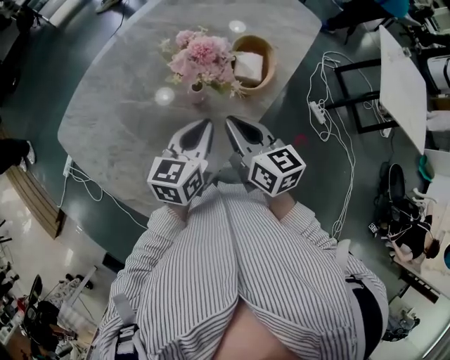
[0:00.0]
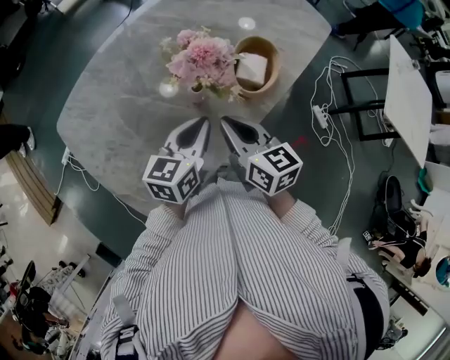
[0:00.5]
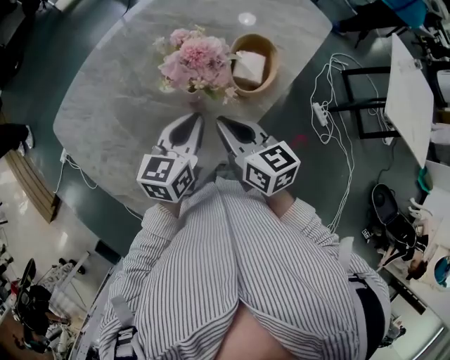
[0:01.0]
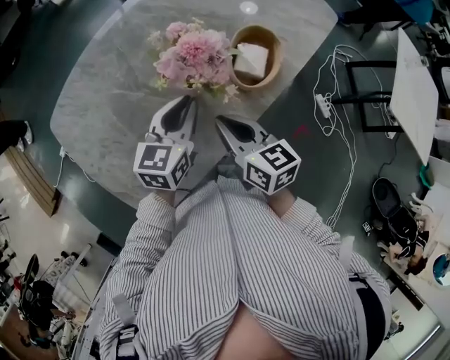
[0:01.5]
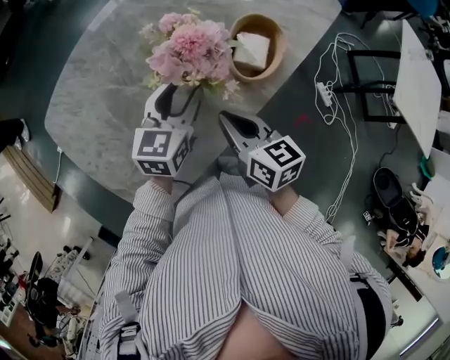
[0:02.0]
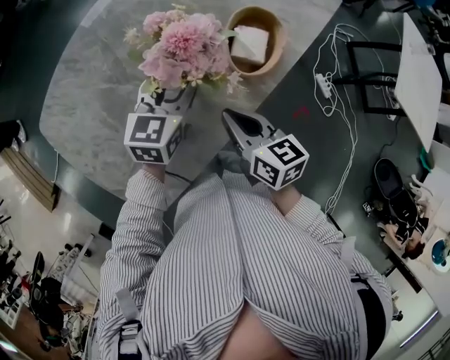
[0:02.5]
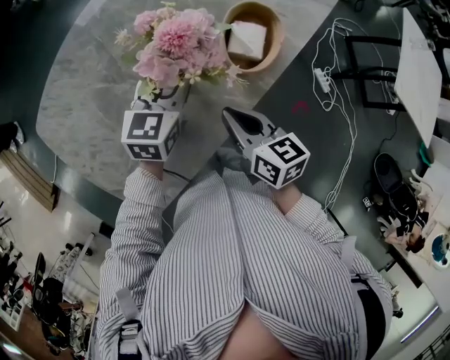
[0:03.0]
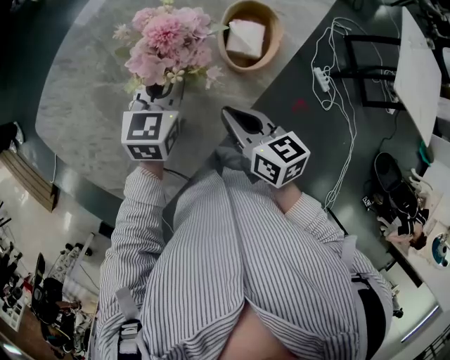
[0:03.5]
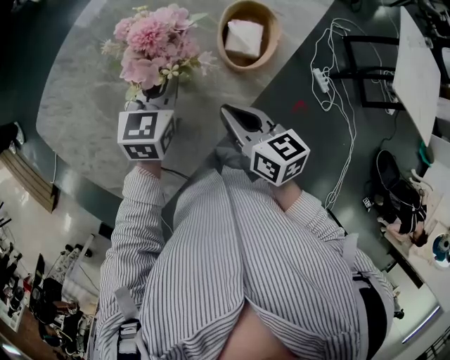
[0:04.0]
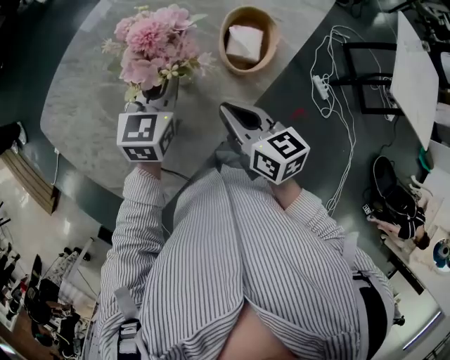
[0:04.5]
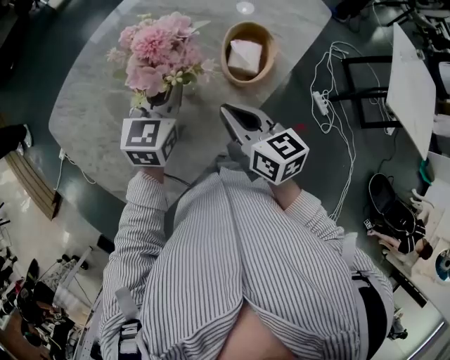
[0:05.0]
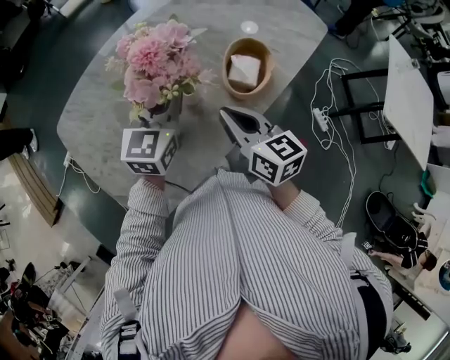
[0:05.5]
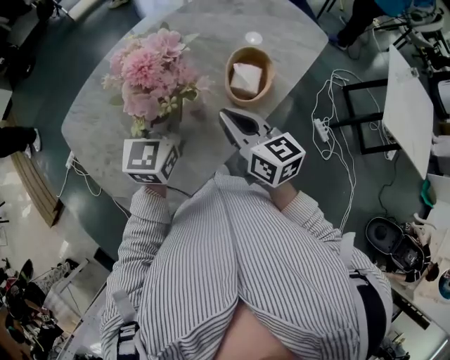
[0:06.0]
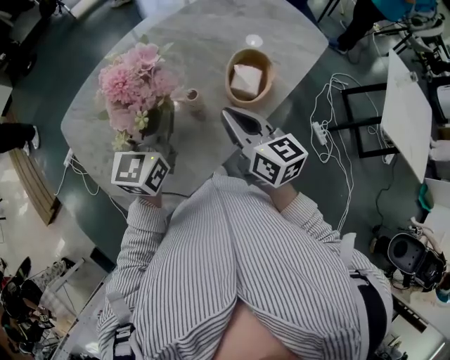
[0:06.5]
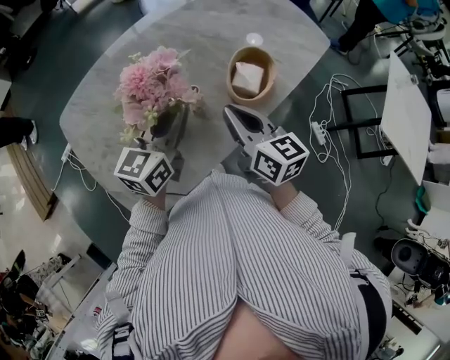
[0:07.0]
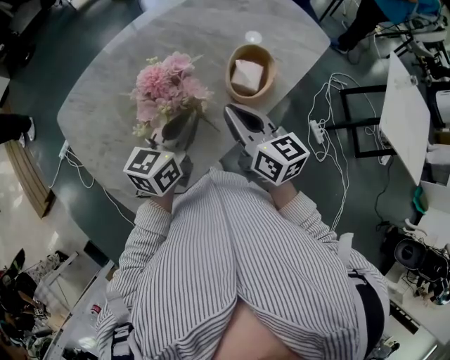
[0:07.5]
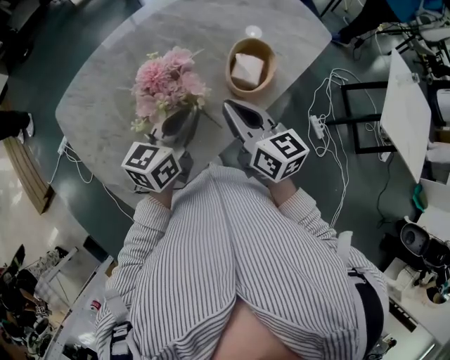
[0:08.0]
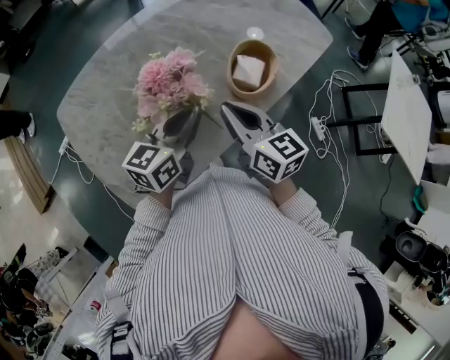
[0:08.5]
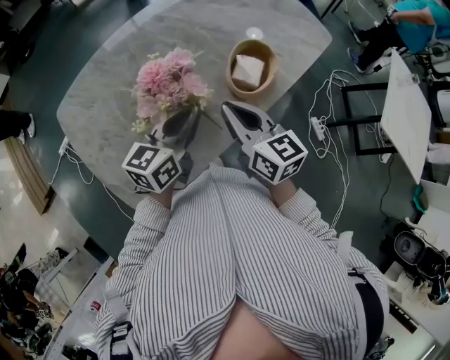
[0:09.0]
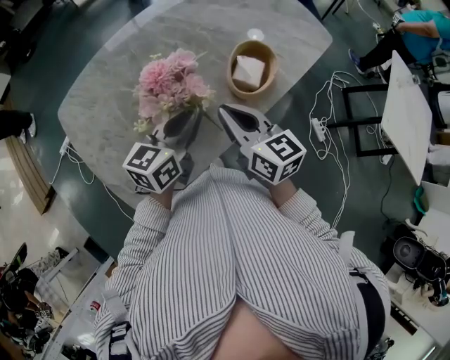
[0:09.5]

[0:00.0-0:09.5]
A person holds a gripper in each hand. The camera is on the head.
0:00.0 to 0:02.0: The left gripper travels forward by approximately 10 cm, and opens its fingers, while the right gripper travels downward by about 5 cm.
0:02.0 to 0:04.0: The left gripper closes up.
0:04.0 to 0:05.5: Both grippers travel together upward, approximately 5 cm.
0:05.5 to 0:07.5: The left gripper travels backward by roughly 10 cm, and rotates roughly 20 degrees.
0:07.5 to 0:09.5: The grippers stay close to where they were, moving slightly.

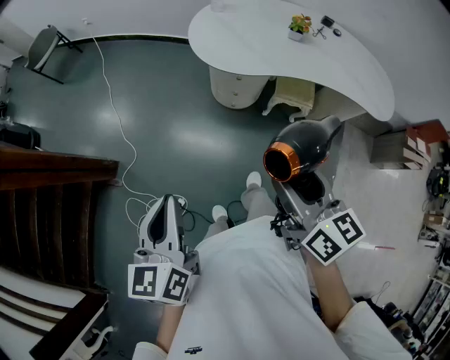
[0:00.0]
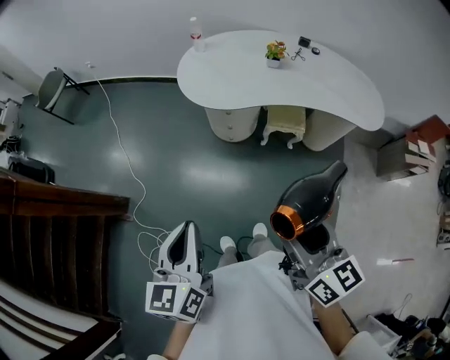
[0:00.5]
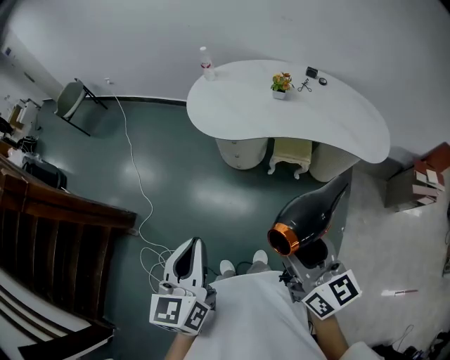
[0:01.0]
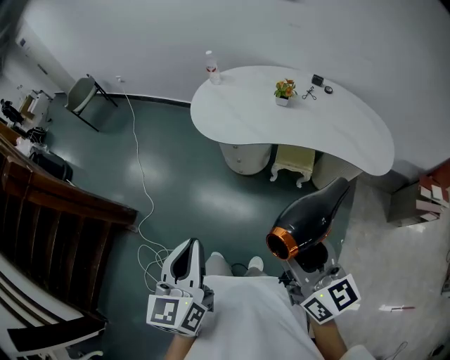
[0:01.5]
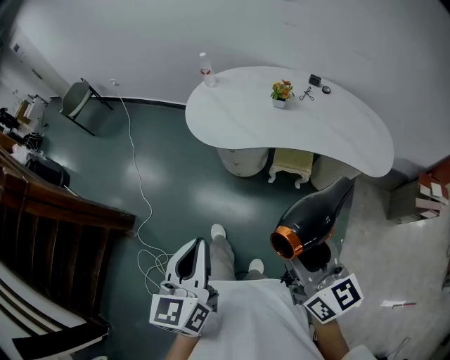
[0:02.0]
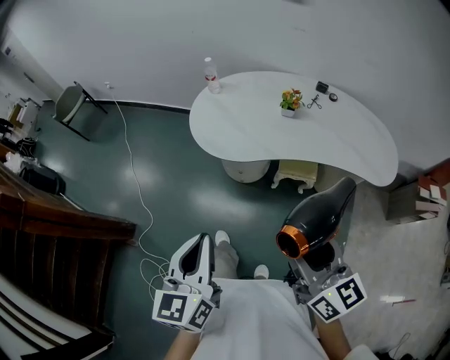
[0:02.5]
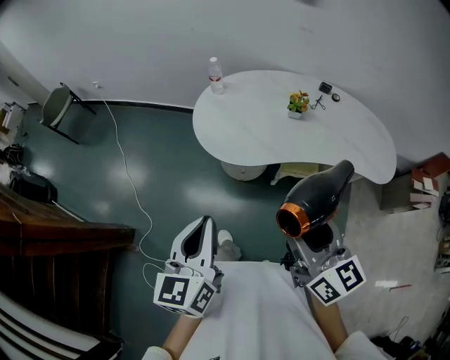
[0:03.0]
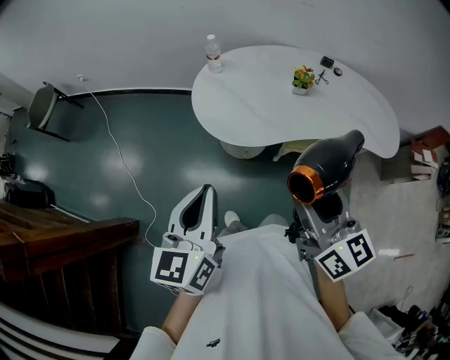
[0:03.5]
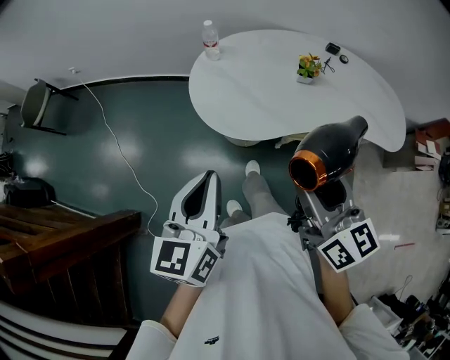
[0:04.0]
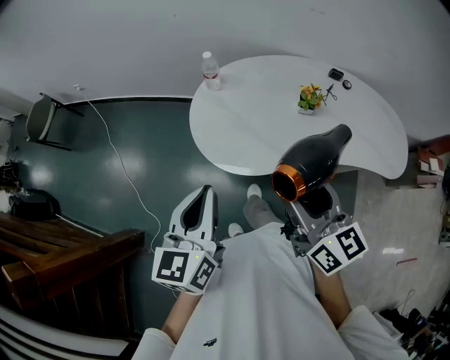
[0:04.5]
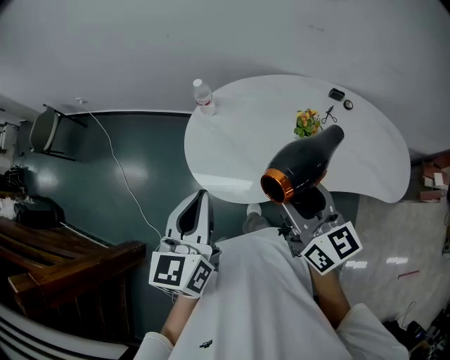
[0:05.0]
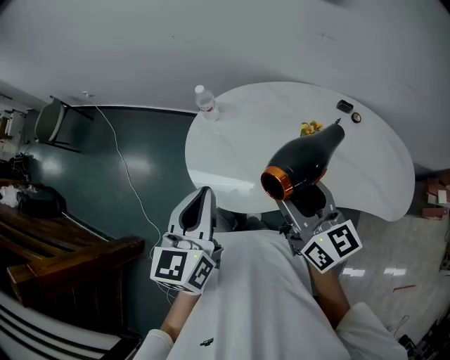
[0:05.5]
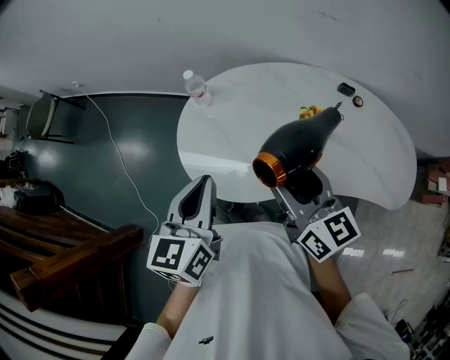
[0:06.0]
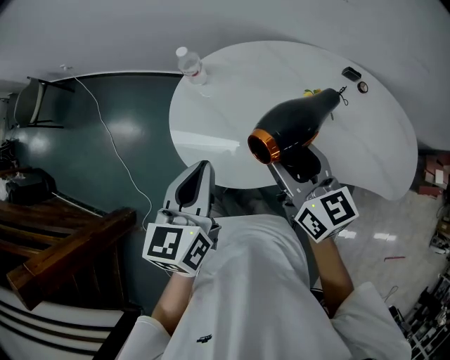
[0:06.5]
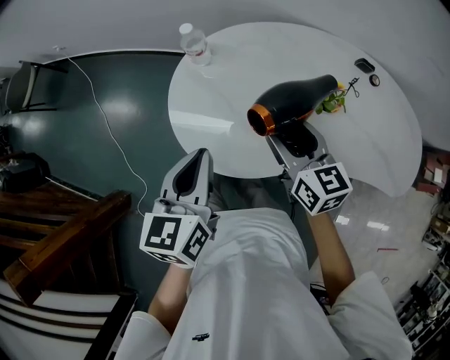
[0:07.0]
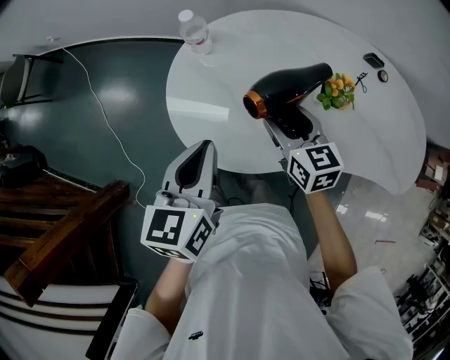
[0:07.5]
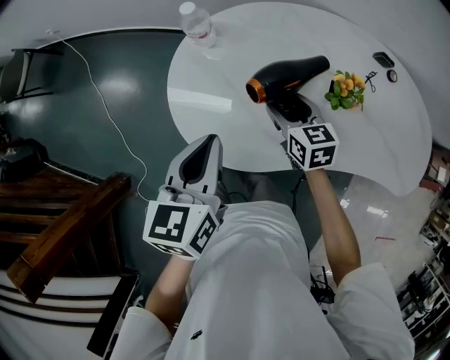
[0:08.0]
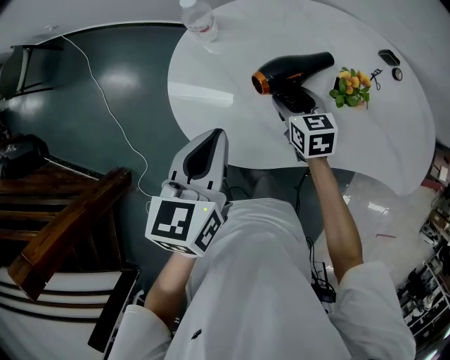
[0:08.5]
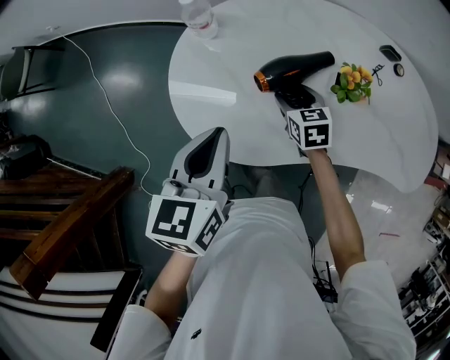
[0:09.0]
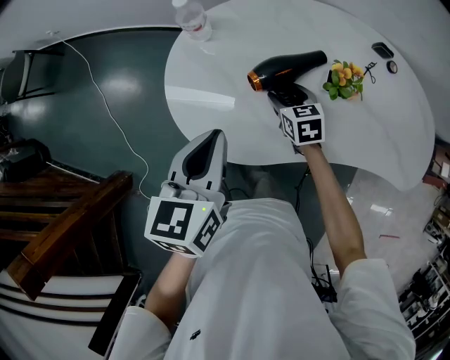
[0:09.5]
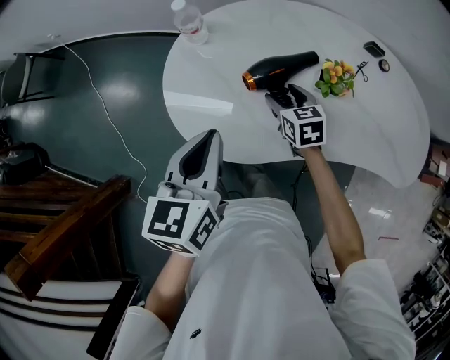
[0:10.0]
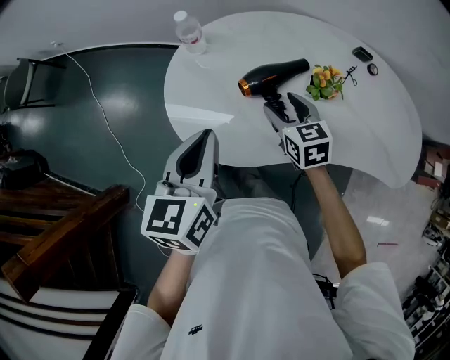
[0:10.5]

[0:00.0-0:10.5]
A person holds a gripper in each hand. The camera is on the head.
0:00.0 to 0:02.0: Both grippers travel together to the right, approximately 20 cm.
0:02.0 to 0:04.0: The two grippers go about 30 cm forward and to the left.
0:04.0 to 0:06.5: The left gripper shifts approximately 25 cm forward and to the right, while the right gripper heads forward, covering roughly 25 cm.
0:06.5 to 0:08.5: The left gripper heads downward, covering some 10 cm, while the right gripper moves downward, approximately 25 cm, and turns by about 30 degrees.
0:08.5 to 0:10.5: The right gripper travels upward by approximately 5 cm, while the left gripper changes place by roughly 5 cm.

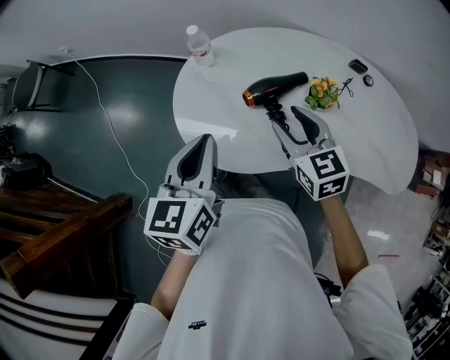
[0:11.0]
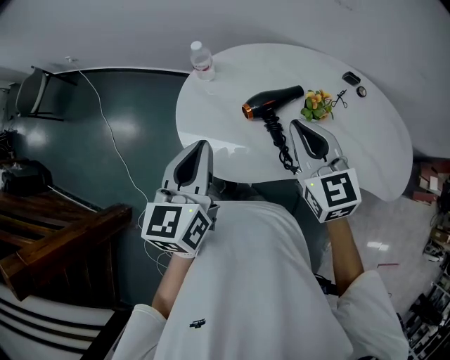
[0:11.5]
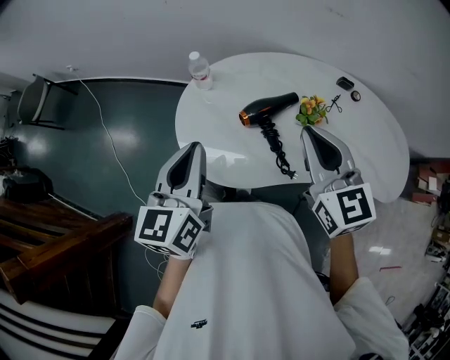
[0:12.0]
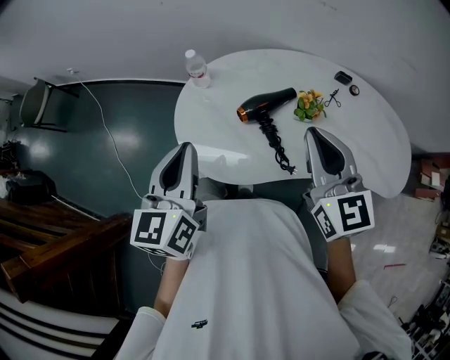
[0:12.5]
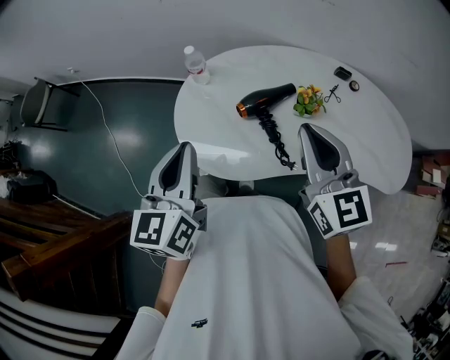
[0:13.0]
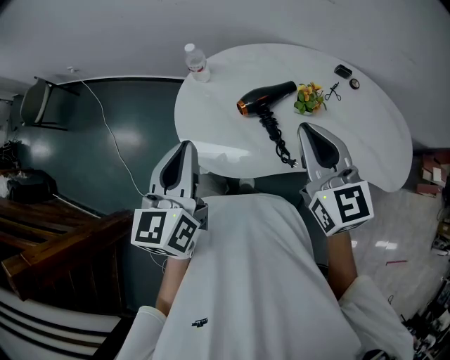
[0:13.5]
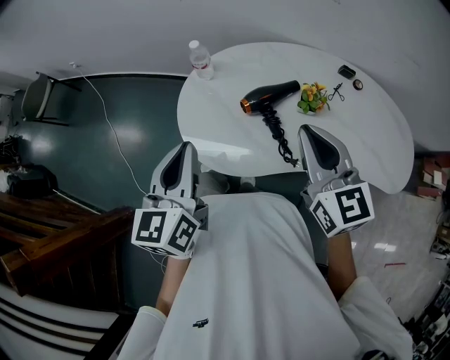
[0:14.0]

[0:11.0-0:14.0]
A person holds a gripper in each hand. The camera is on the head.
0:11.0 to 0:12.5: The right gripper travels upward by roughly 15 cm, turns by about 20 degrees, and closes. The left gripper moves upward, some 5 cm.
0:12.5 to 0:14.0: The grippers stay close to where they were, moving slightly.

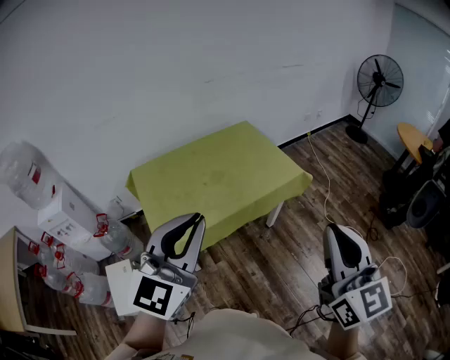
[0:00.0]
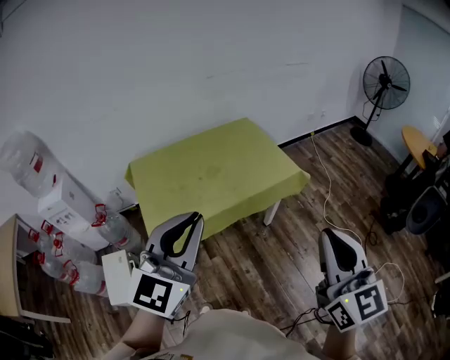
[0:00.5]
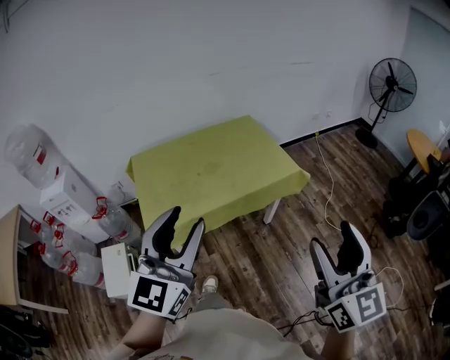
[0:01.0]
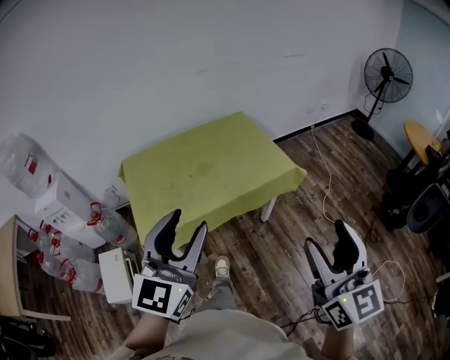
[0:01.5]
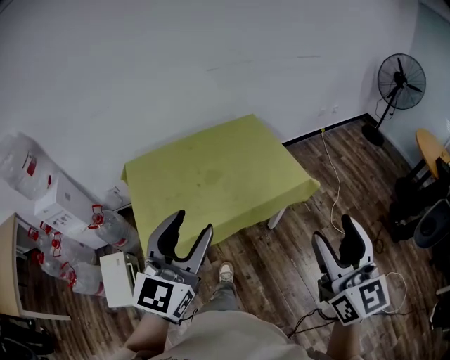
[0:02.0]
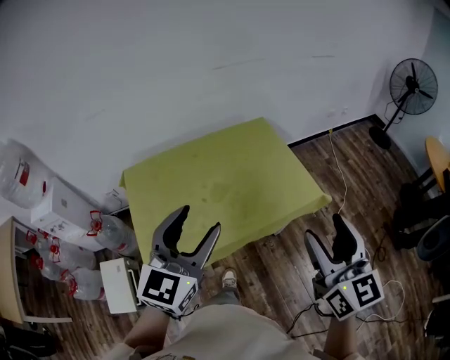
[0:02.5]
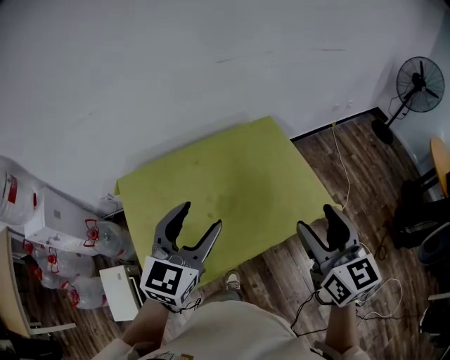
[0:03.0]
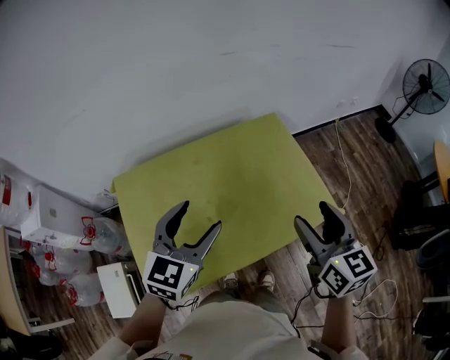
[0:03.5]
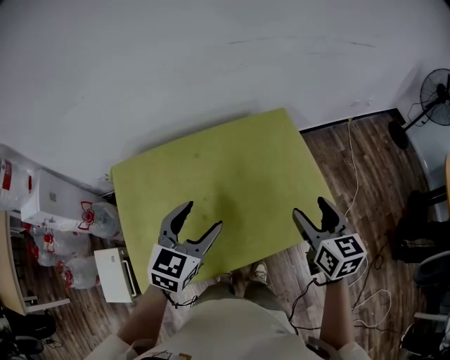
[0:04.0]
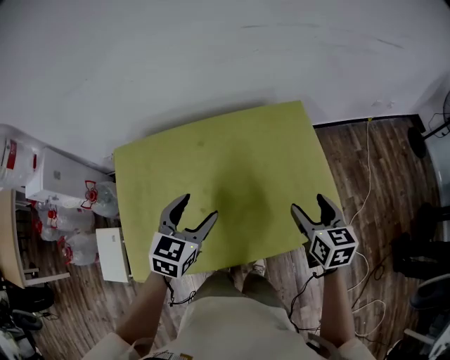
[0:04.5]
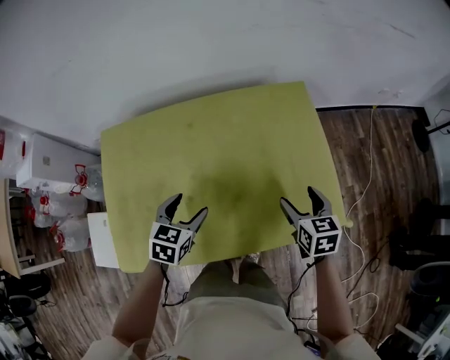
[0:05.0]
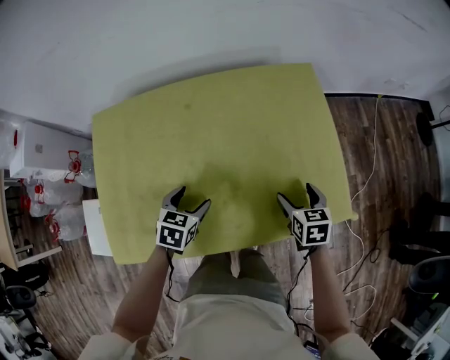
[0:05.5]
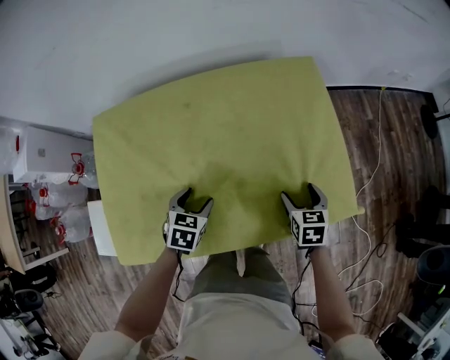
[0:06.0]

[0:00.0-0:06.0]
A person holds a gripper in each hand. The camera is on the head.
0:00.0 to 0:02.0: The right gripper travels forward, to the right and downward by about 15 cm, and opens up, while the left gripper is displaced forward and downward by roughly 15 cm, and opens up.
0:02.0 to 0:04.0: The two grippers go roughly 40 cm forward and downward. The left gripper turns by some 30 degrees, while the right gripper swivels some 30 degrees.
0:04.0 to 0:06.0: Both grippers move downward, approximately 30 cm. The left gripper angles its fingers downward, by roughly 30 degrees, while the right gripper rotates approximately 30 degrees.
